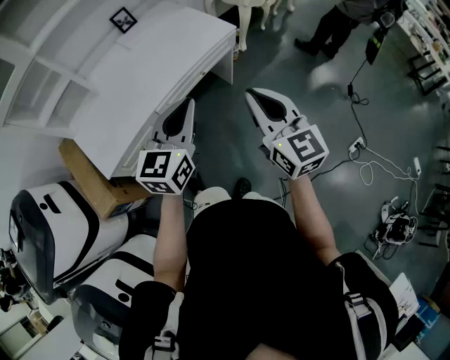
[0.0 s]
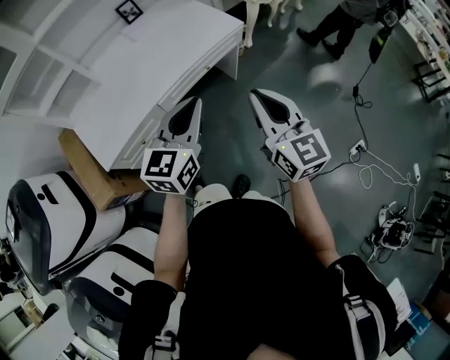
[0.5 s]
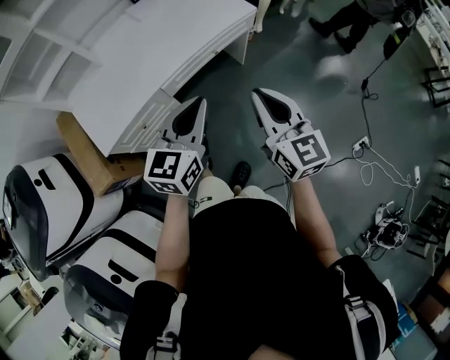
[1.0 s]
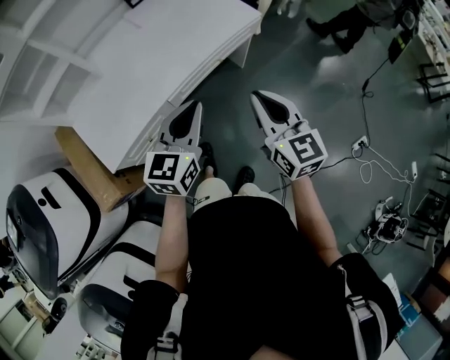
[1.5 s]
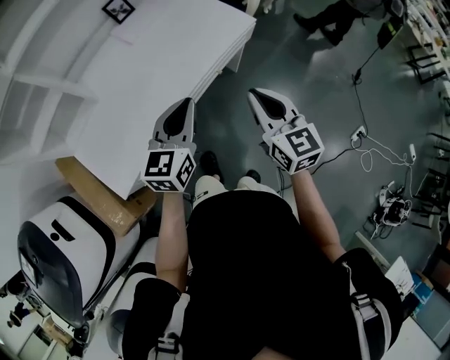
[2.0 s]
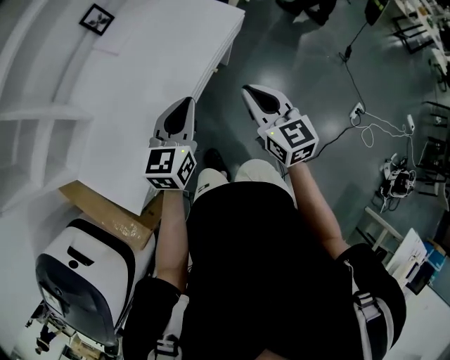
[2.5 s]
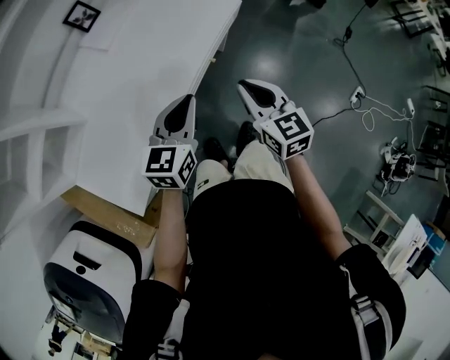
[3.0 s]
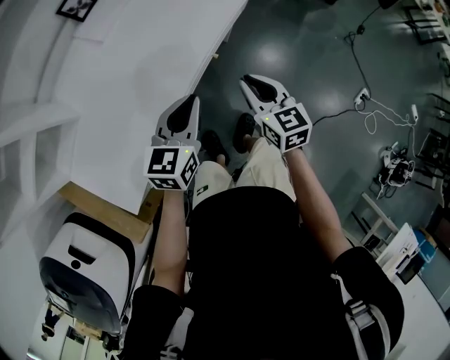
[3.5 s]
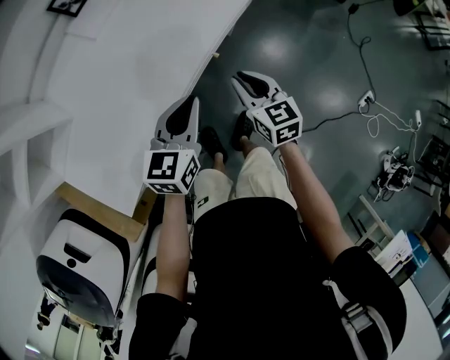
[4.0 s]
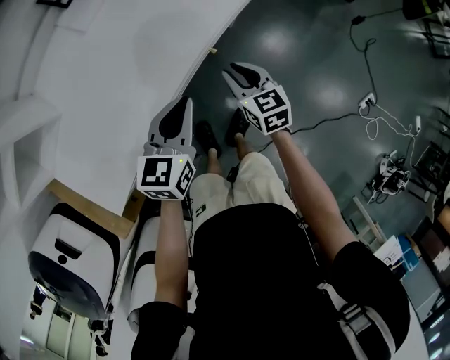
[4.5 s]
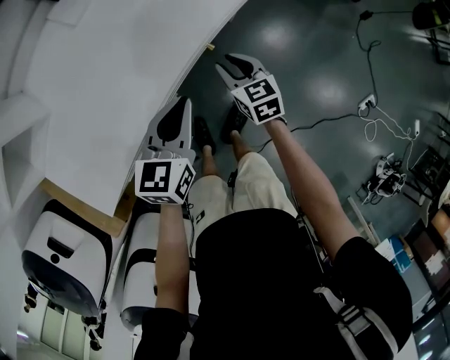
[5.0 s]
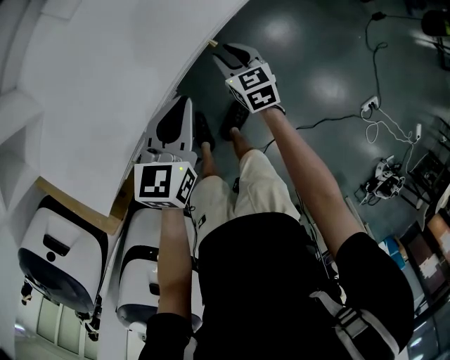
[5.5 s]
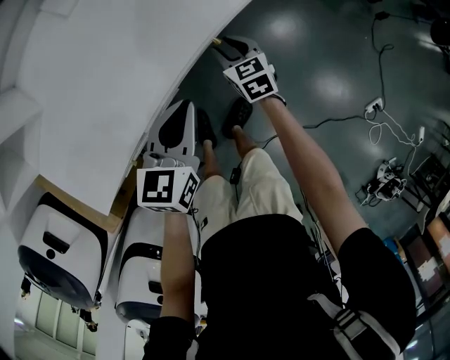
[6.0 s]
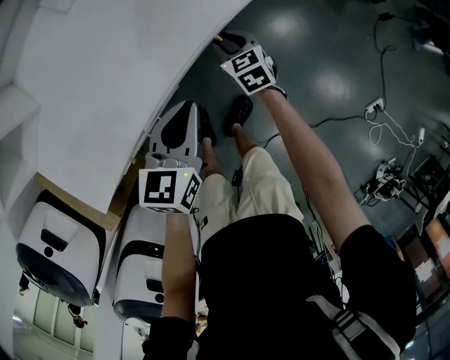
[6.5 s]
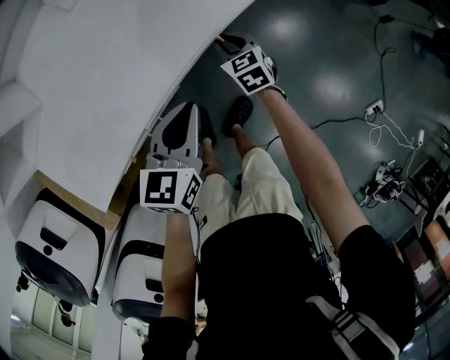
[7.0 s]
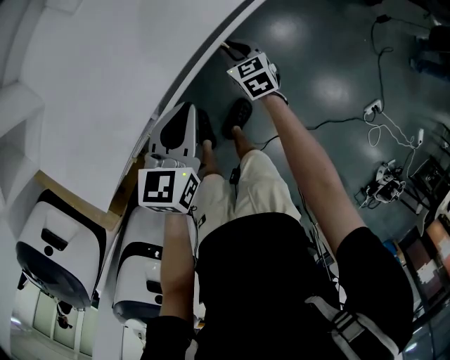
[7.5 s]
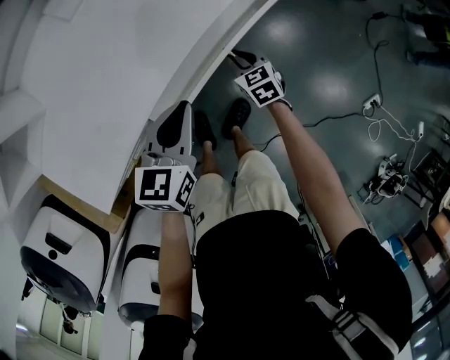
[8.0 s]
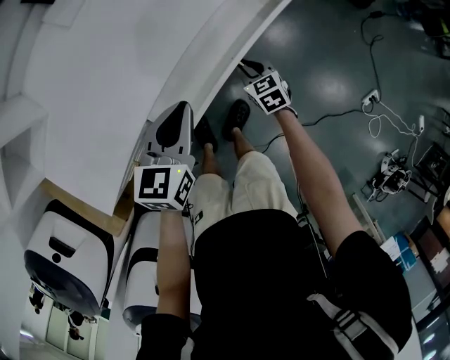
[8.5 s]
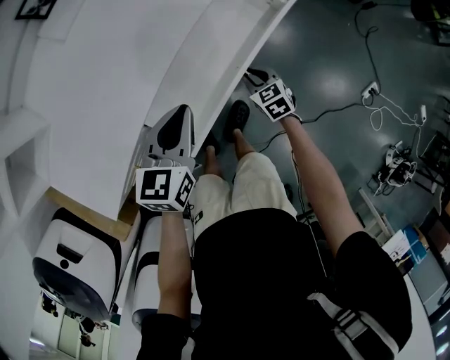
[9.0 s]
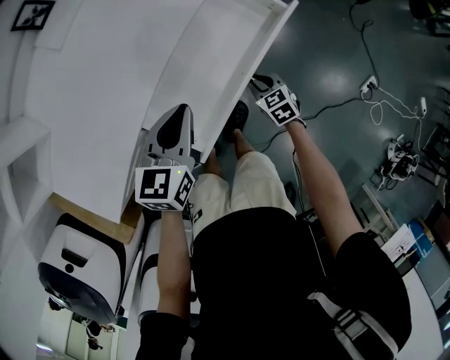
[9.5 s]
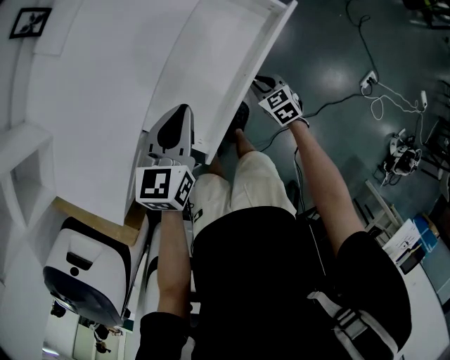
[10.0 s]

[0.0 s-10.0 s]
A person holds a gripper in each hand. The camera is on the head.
0.0 to 2.0 s: The grippers both shift forward, to the left and downward by about 25 cm.
2.0 to 4.0 s: The two grippers go about 25 cm downward and forward.
4.0 to 6.0 s: The left gripper shifts about 10 cm downward; the right gripper moves downward and forward, approximately 25 cm.
6.0 to 8.0 s: The right gripper ends up approximately 5 cm from where it was.
8.0 to 10.0 s: The right gripper is displaced to the right and backward by roughly 15 cm. The left gripper is displaced to the right by roughly 5 cm.

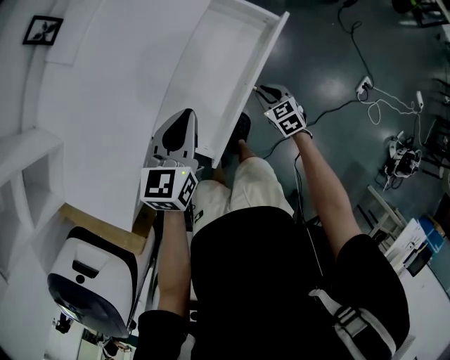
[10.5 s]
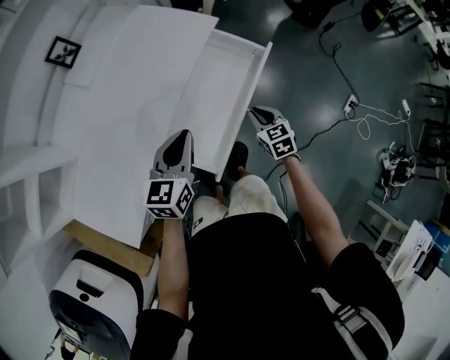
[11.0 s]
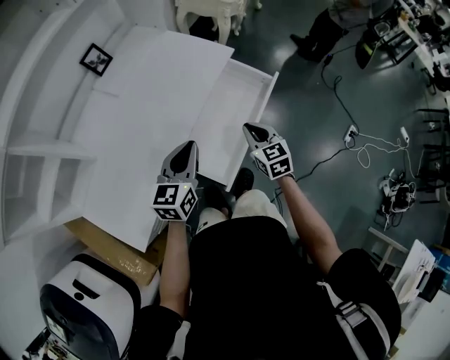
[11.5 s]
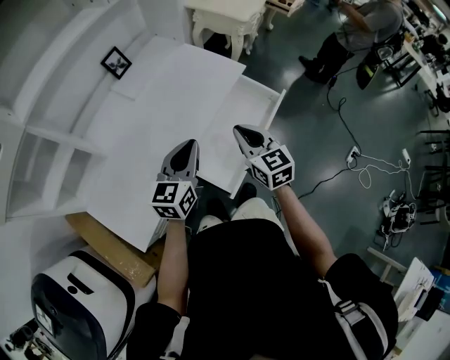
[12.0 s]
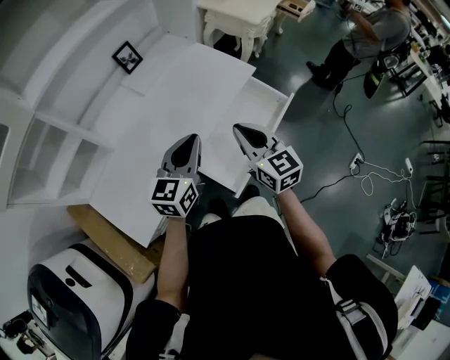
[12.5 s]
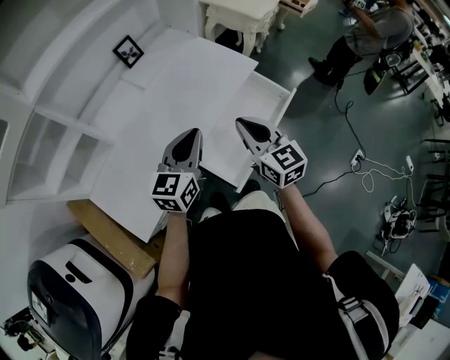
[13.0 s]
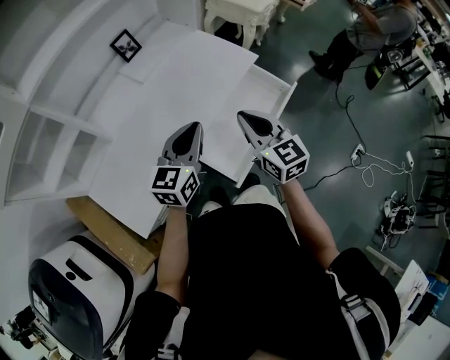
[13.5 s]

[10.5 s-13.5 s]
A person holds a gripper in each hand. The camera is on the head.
10.5 to 12.0 s: The right gripper travels upward and to the left by roughly 40 cm, and points its fingers approximately 30 degrees further upward, while the left gripper is displaced upward, to the left and backward by roughly 20 cm.
12.0 to 13.5 s: The right gripper ends up about 5 cm from where it was.

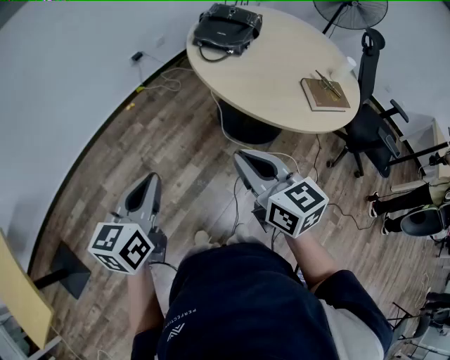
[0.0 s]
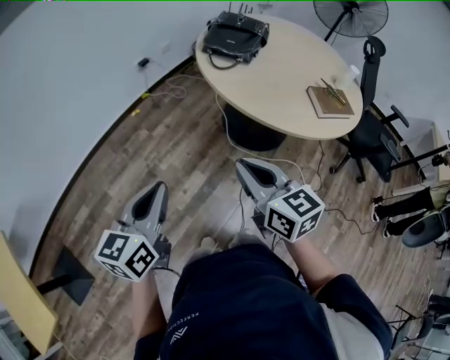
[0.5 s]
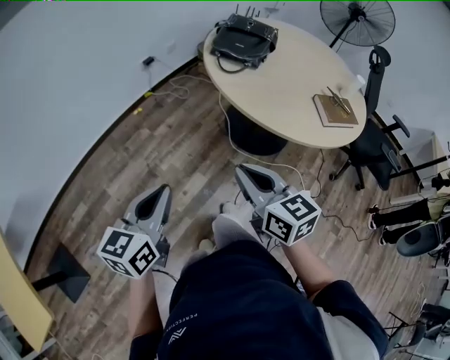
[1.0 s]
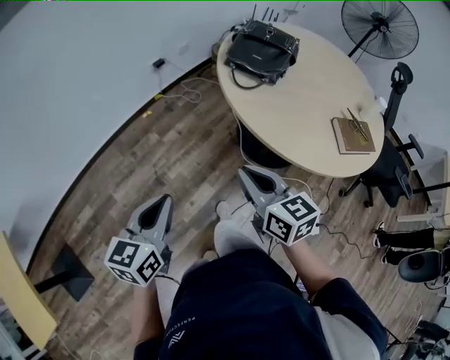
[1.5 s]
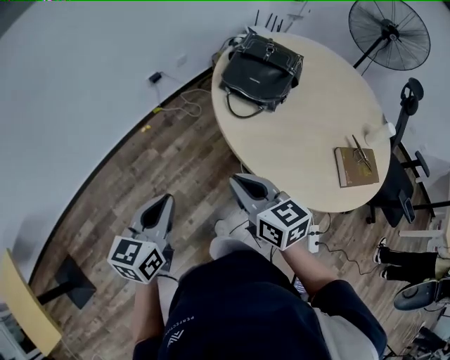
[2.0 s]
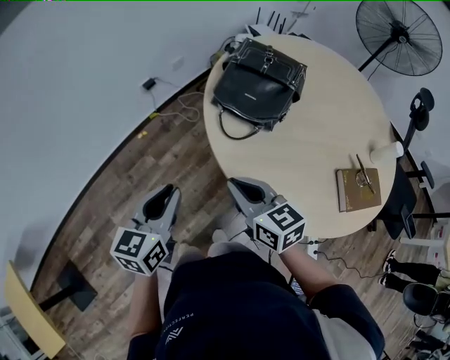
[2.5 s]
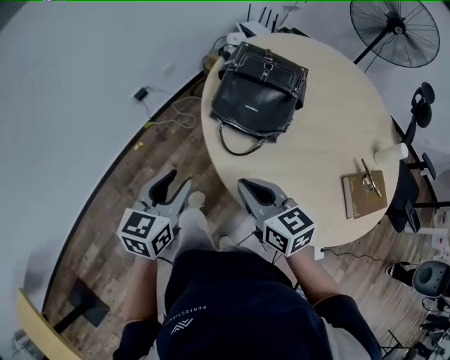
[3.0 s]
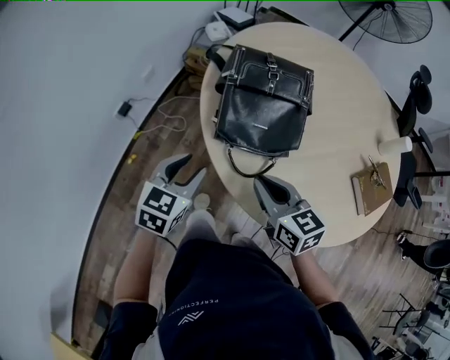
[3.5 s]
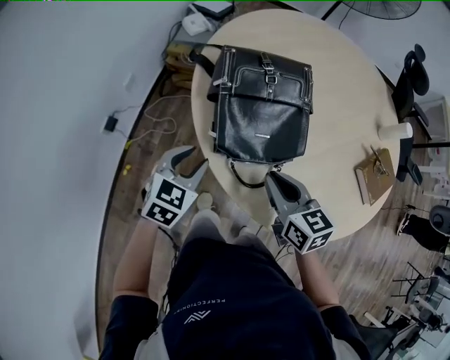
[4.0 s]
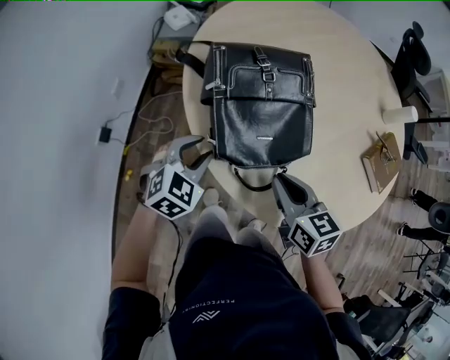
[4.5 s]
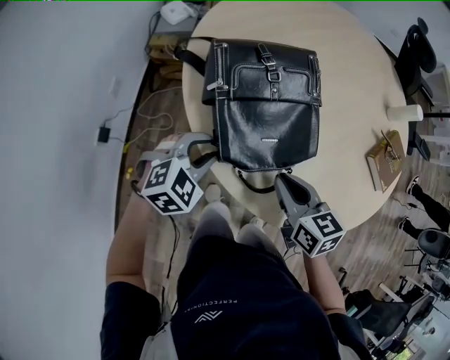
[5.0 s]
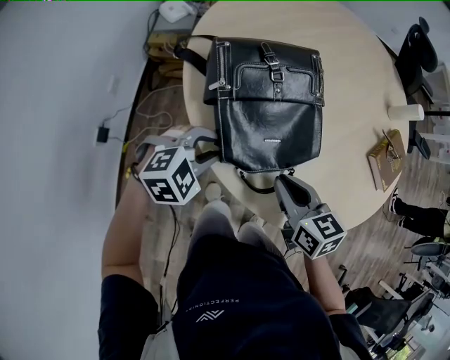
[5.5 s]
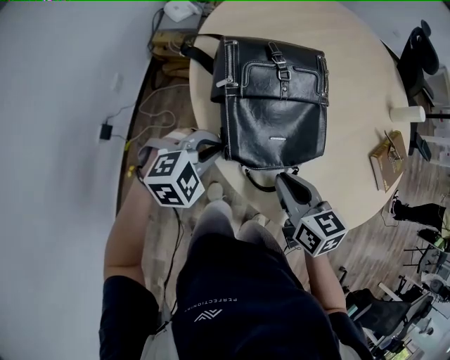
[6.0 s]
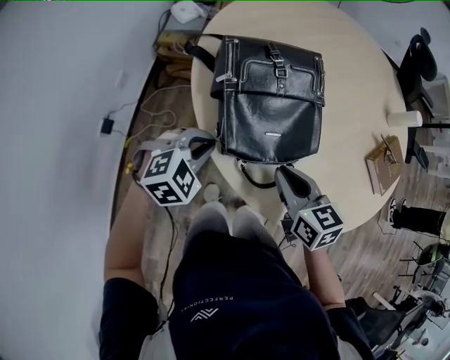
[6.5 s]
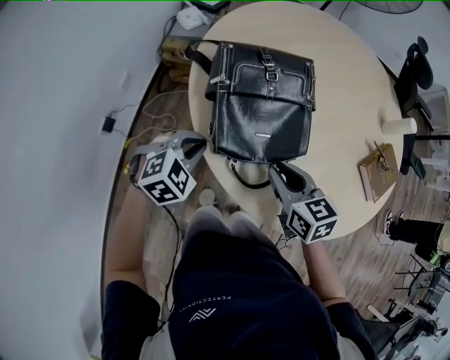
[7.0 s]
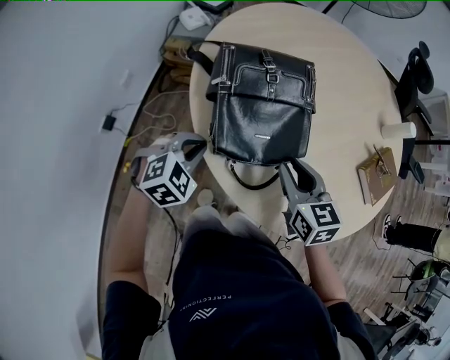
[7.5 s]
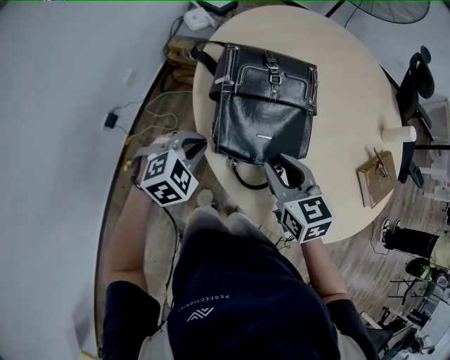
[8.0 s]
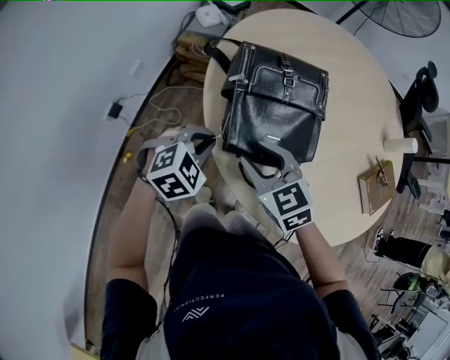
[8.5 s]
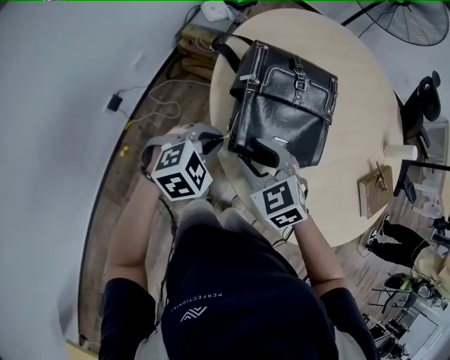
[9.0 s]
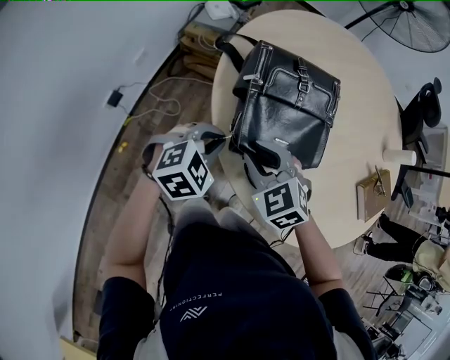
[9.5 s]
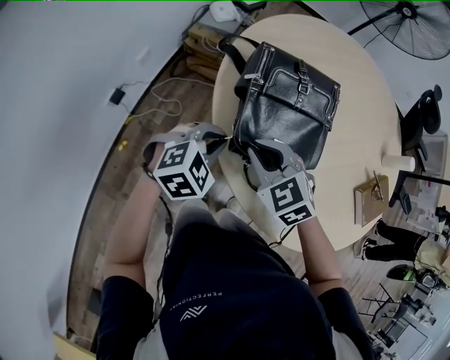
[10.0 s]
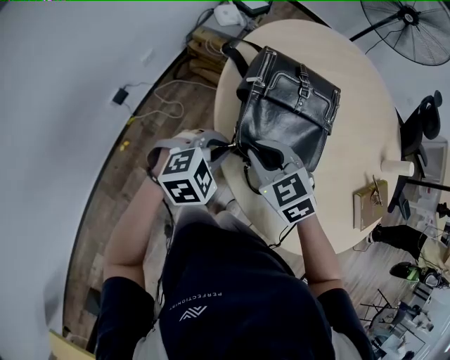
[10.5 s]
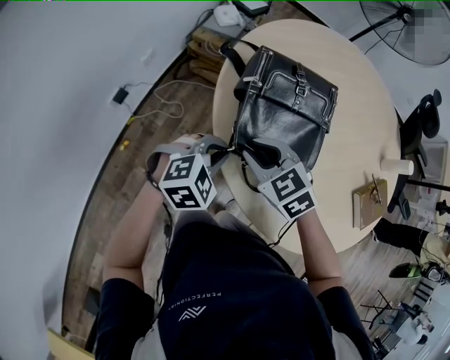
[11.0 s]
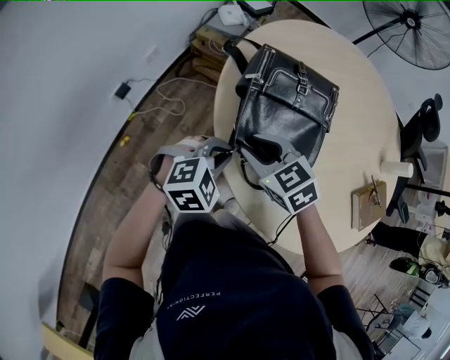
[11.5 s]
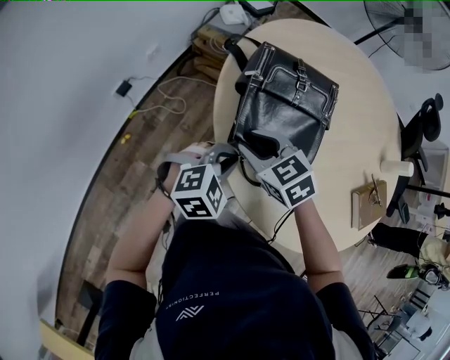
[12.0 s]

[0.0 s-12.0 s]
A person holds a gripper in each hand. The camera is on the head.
0.0 to 2.0 s: The grippers both shift forward by roughly 25 cm.
2.0 to 4.0 s: The left gripper shifts by approximately 50 cm, turns by approximately 50 degrees, and opens up, while the right gripper shifts by approximately 30 cm, and rotates about 40 degrees.
4.0 to 6.0 s: The left gripper ends up approximately 5 cm from where it was, turns by about 50 degrees, and closes its fingers.
6.0 to 8.0 s: The right gripper opens its fingers, while the left gripper swivels roughly 20 degrees.
8.0 to 10.0 s: The right gripper goes roughly 10 cm to the left, changes its angle by roughly 40 degrees, and closes its fingers.
10.0 to 12.0 s: The right gripper opens its fingers. The left gripper travels backward by approximately 5 cm.

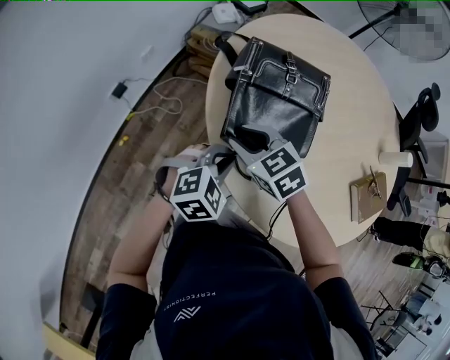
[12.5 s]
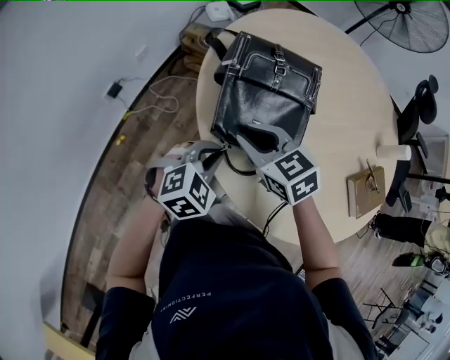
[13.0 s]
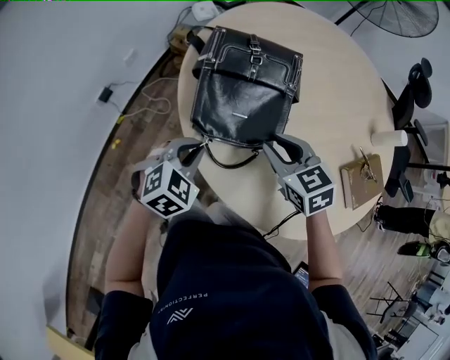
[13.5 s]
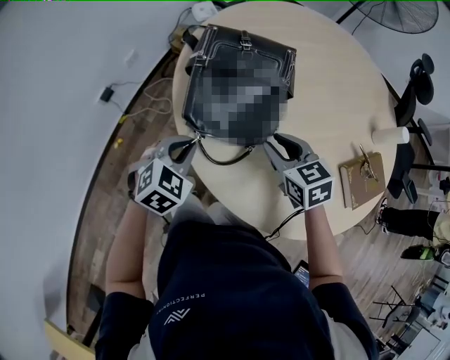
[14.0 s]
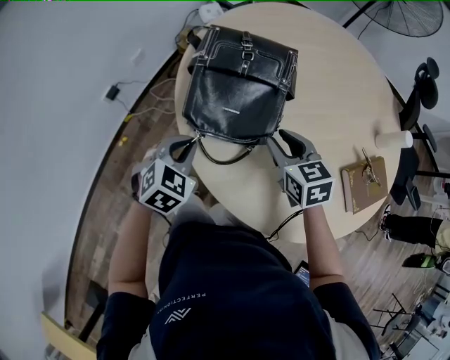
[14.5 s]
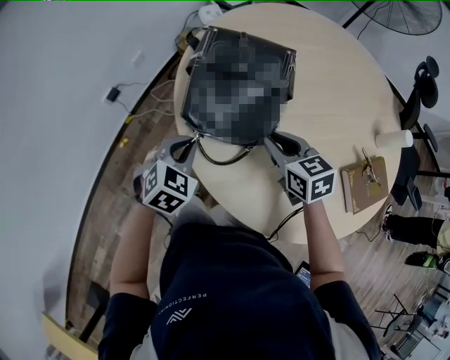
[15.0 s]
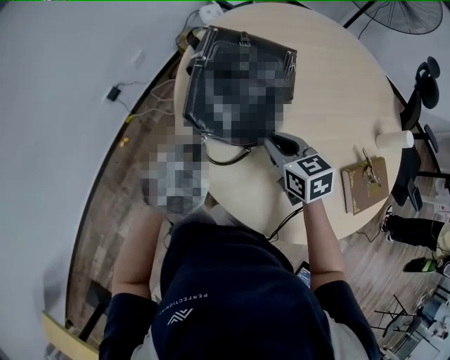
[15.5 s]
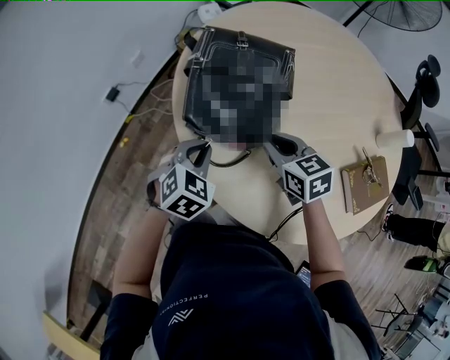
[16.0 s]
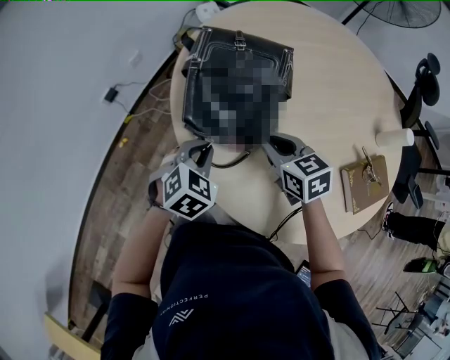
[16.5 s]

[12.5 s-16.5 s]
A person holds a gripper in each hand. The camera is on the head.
12.5 to 14.5 s: The right gripper moves to the right, some 20 cm, and swivels about 20 degrees, while the left gripper changes its angle by approximately 20 degrees.
14.5 to 16.5 s: The left gripper heads to the right, covering roughly 5 cm, while the right gripper closes.
